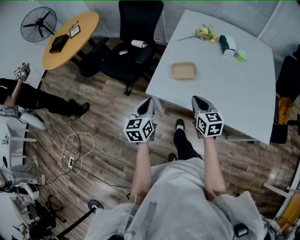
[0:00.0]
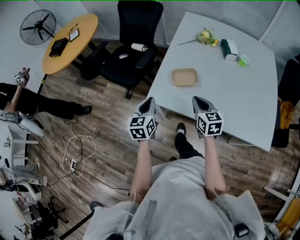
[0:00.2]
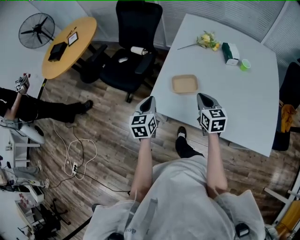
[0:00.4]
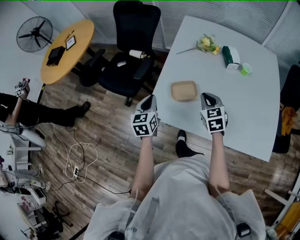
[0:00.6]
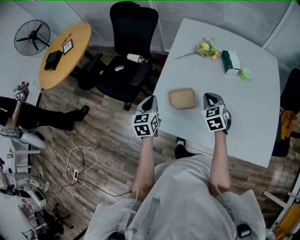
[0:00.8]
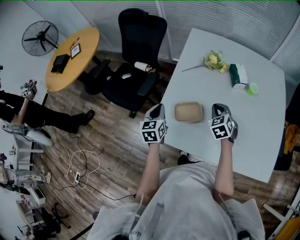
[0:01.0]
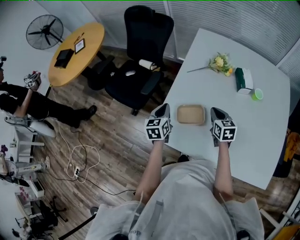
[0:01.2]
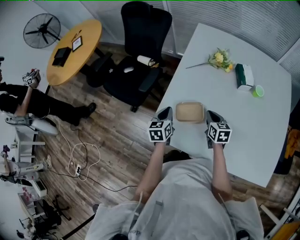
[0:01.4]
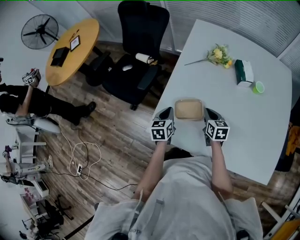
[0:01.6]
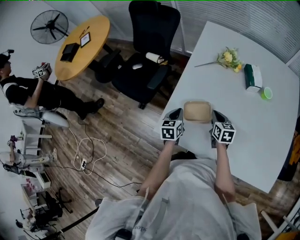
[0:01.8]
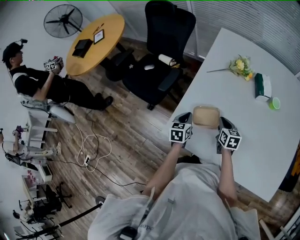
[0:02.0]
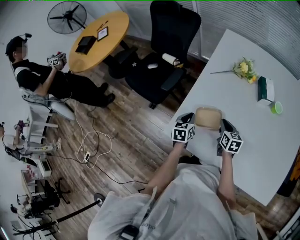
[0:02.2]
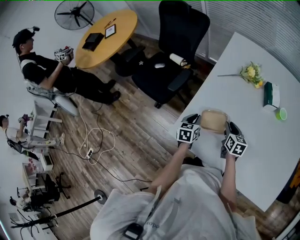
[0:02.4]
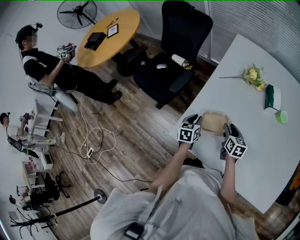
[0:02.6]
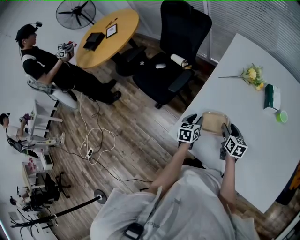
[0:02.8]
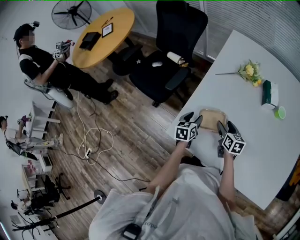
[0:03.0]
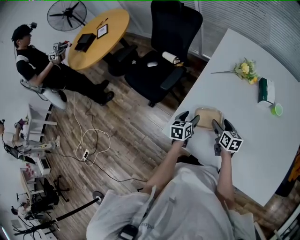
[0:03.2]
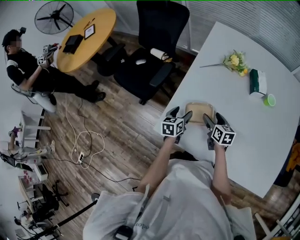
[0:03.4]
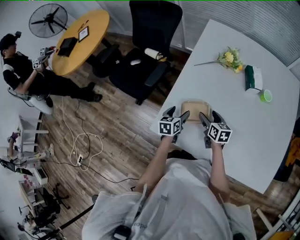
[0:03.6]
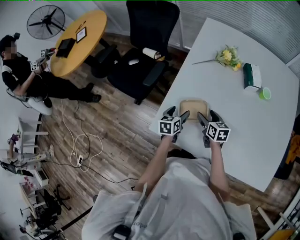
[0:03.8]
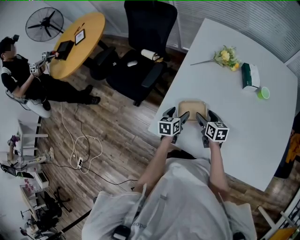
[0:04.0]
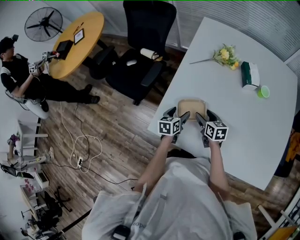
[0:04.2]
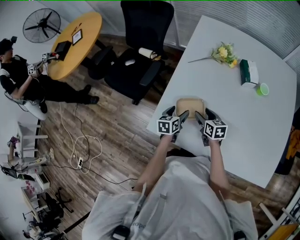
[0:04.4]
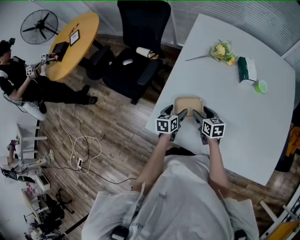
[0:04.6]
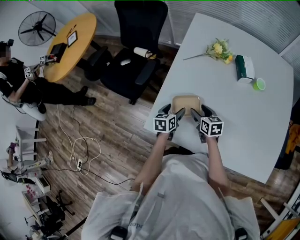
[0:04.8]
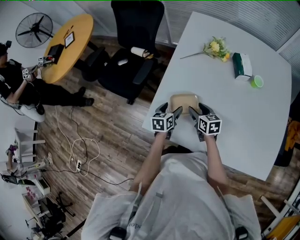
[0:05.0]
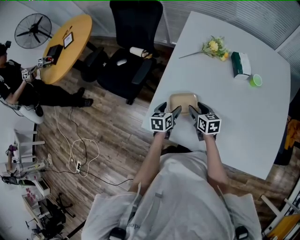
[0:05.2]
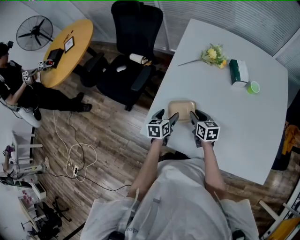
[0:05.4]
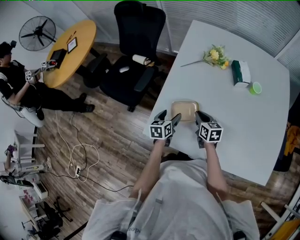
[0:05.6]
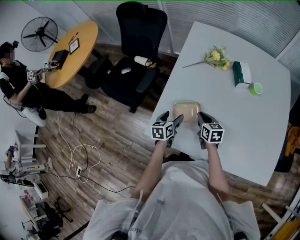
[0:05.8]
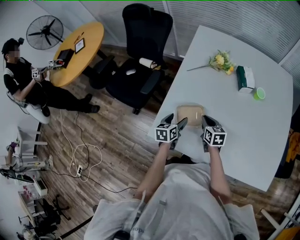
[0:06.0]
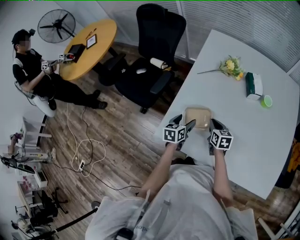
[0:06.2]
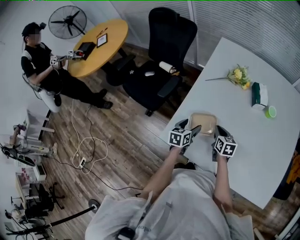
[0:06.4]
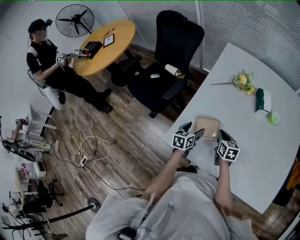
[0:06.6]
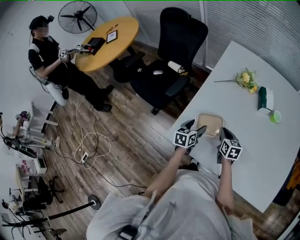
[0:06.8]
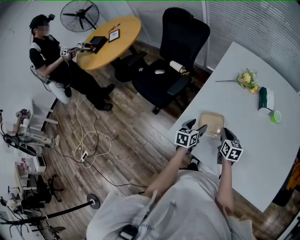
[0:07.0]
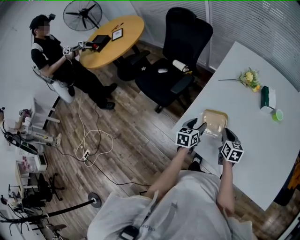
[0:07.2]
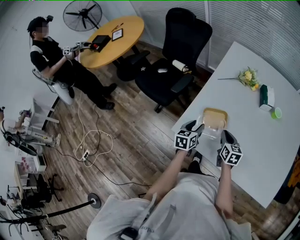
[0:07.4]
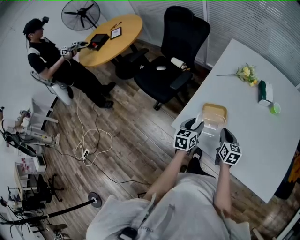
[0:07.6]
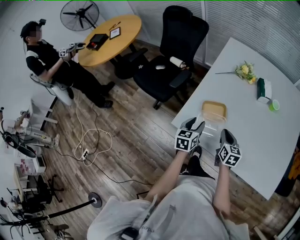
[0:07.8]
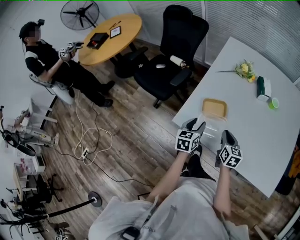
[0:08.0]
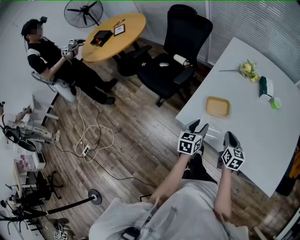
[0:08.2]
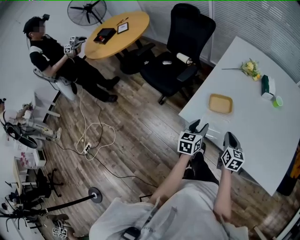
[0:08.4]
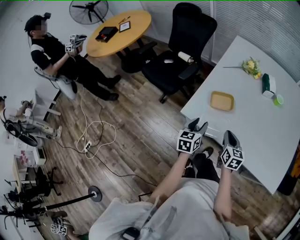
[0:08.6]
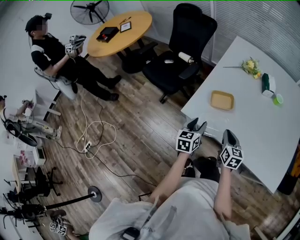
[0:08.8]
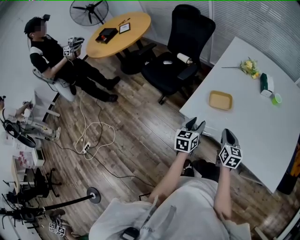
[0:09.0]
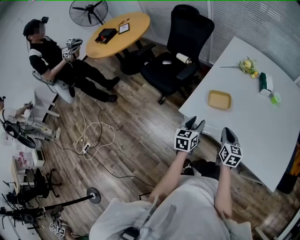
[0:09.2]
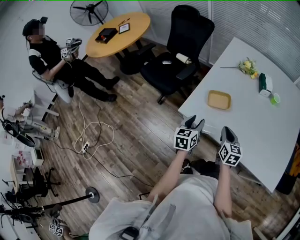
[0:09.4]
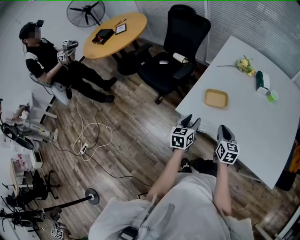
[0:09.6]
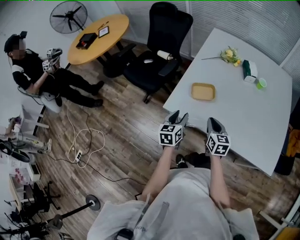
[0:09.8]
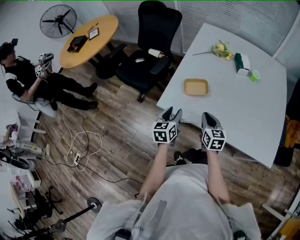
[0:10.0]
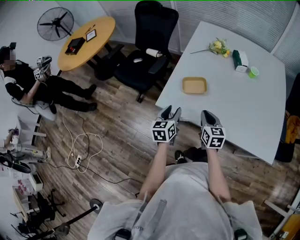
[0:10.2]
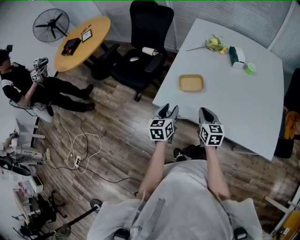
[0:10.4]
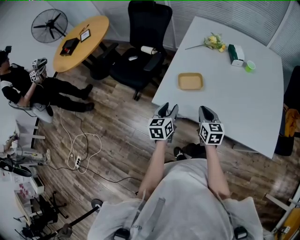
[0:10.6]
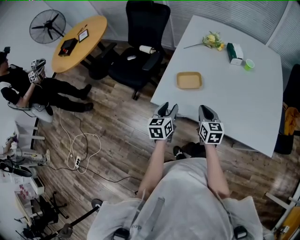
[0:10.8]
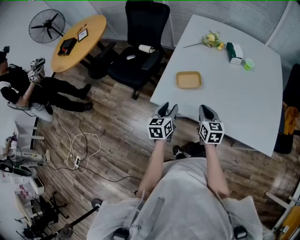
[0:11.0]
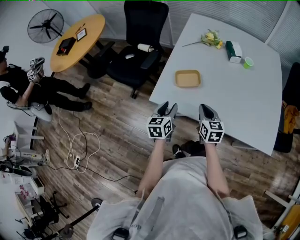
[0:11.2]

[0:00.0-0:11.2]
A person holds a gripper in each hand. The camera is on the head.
0:00.0 to 0:01.6: The right gripper travels forward and downward by about 25 cm. Meanwhile the left gripper heads forward, downward and to the right, covering some 30 cm.
0:01.6 to 0:03.2: The left gripper opens up. Meanwhile the right gripper opens.
0:03.2 to 0:04.8: The grippers make only small movements.
0:04.8 to 0:06.4: The right gripper closes its fingers.
0:06.4 to 0:08.0: Both grippers move backward and upward, roughly 15 cm. The left gripper closes its fingers.
0:08.0 to 0:09.6: Both grippers move backward, roughly 10 cm.
0:09.6 to 0:11.2: The grippers stay close to where they were, moving slightly.

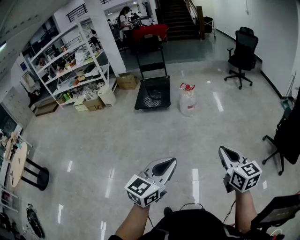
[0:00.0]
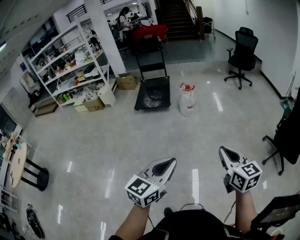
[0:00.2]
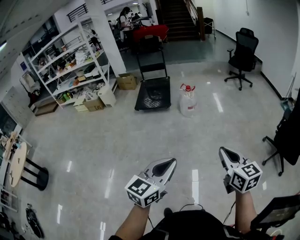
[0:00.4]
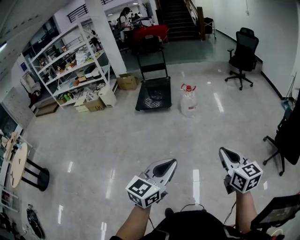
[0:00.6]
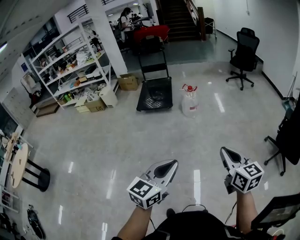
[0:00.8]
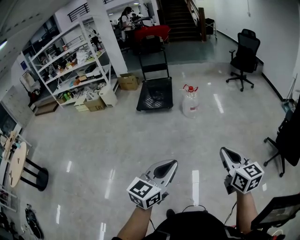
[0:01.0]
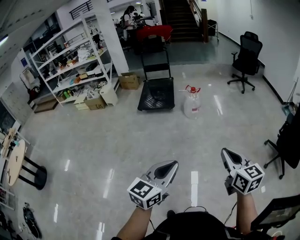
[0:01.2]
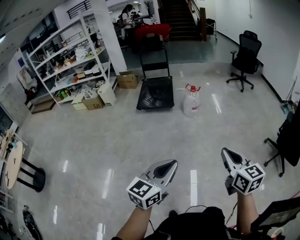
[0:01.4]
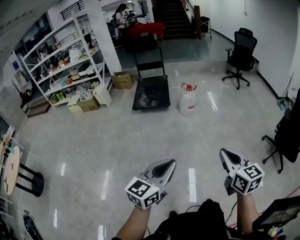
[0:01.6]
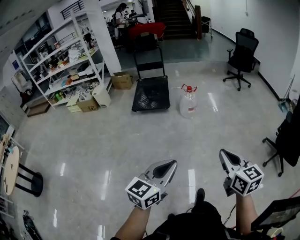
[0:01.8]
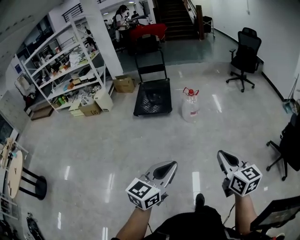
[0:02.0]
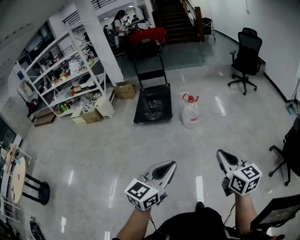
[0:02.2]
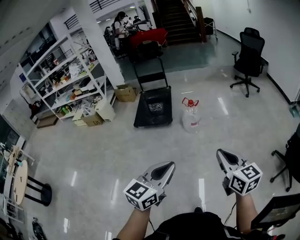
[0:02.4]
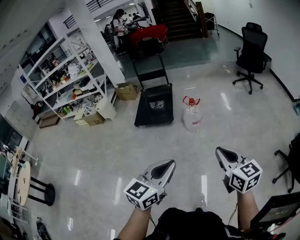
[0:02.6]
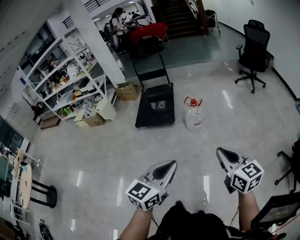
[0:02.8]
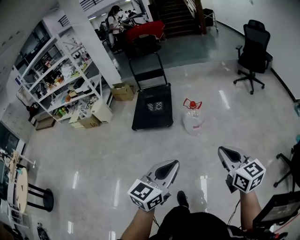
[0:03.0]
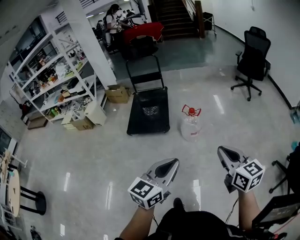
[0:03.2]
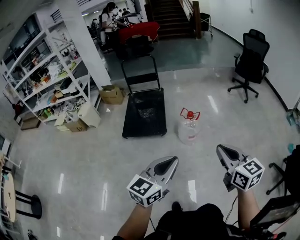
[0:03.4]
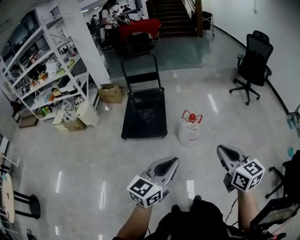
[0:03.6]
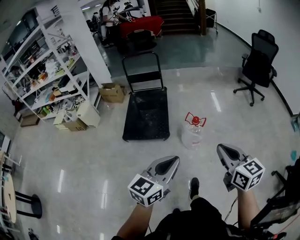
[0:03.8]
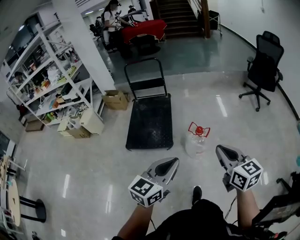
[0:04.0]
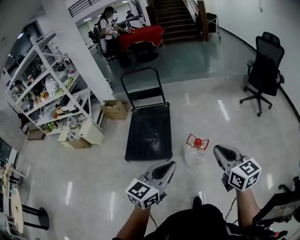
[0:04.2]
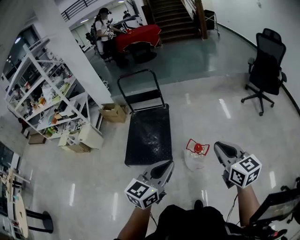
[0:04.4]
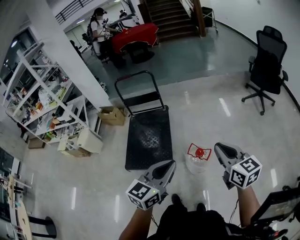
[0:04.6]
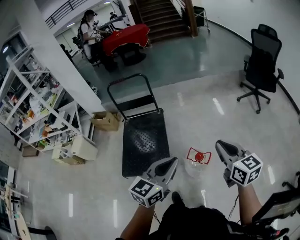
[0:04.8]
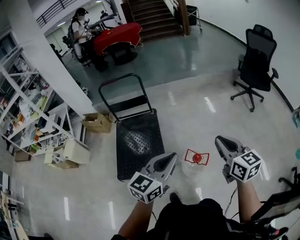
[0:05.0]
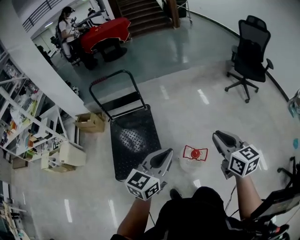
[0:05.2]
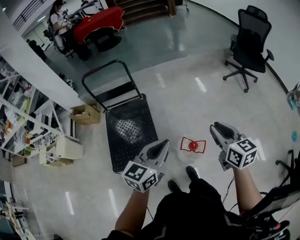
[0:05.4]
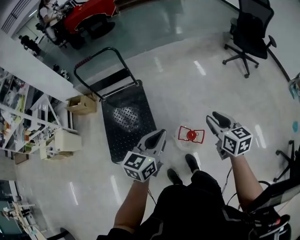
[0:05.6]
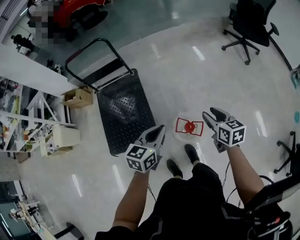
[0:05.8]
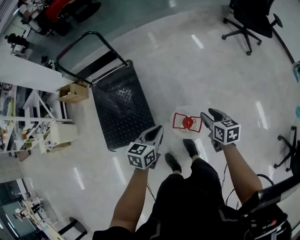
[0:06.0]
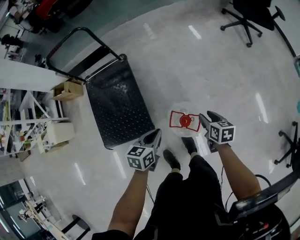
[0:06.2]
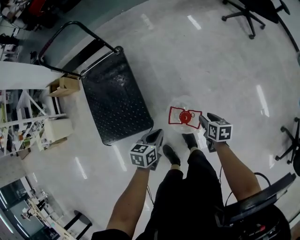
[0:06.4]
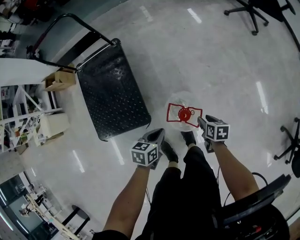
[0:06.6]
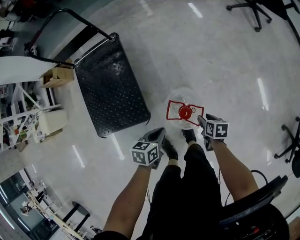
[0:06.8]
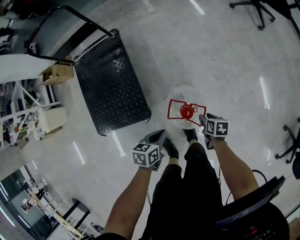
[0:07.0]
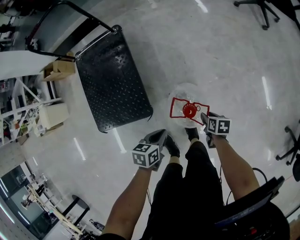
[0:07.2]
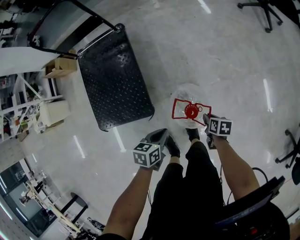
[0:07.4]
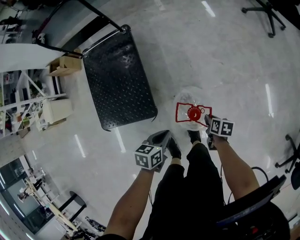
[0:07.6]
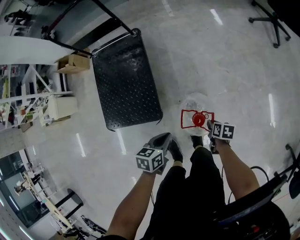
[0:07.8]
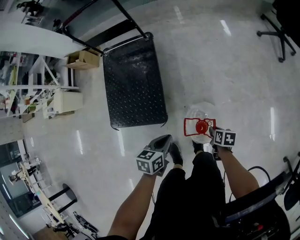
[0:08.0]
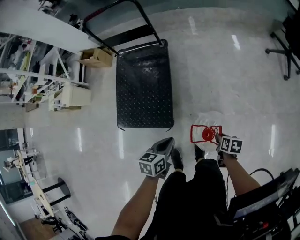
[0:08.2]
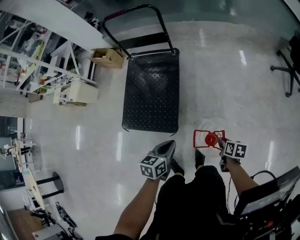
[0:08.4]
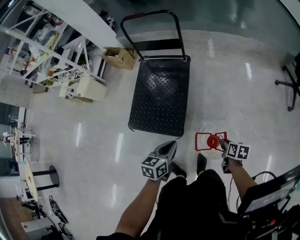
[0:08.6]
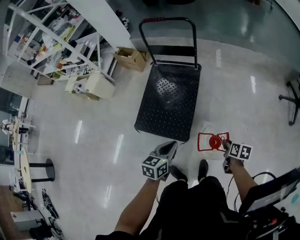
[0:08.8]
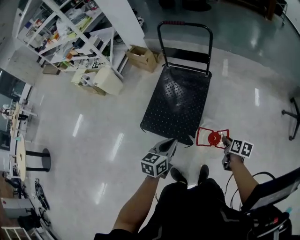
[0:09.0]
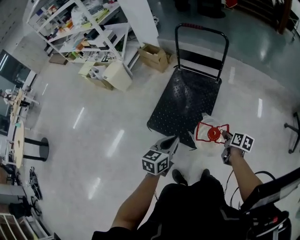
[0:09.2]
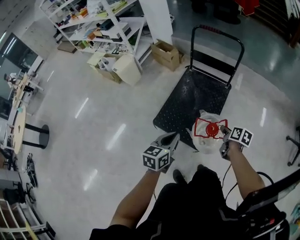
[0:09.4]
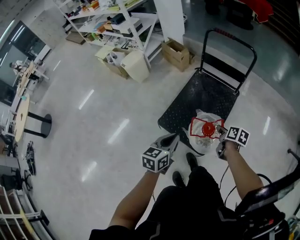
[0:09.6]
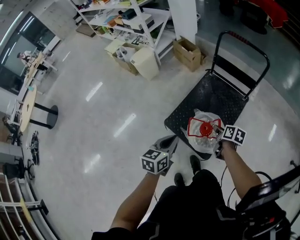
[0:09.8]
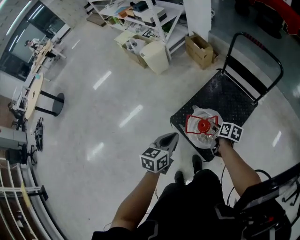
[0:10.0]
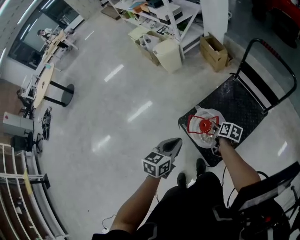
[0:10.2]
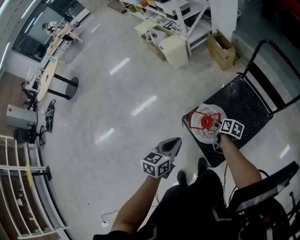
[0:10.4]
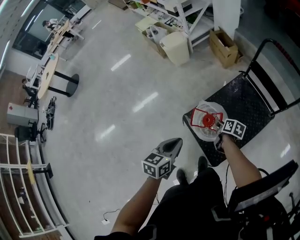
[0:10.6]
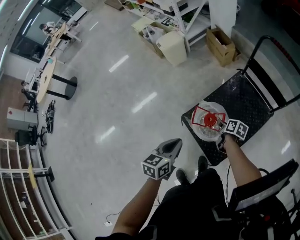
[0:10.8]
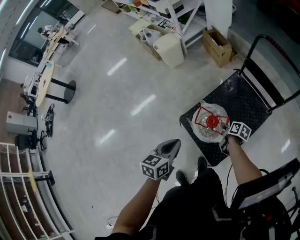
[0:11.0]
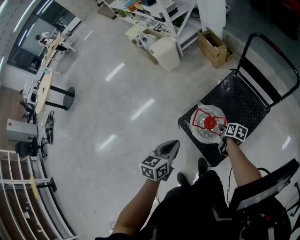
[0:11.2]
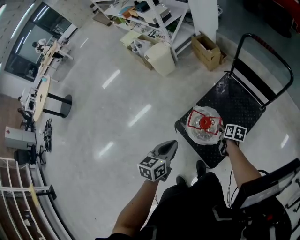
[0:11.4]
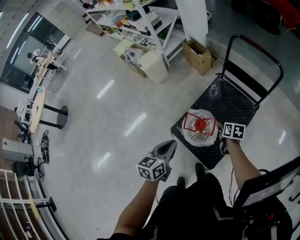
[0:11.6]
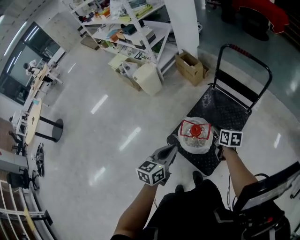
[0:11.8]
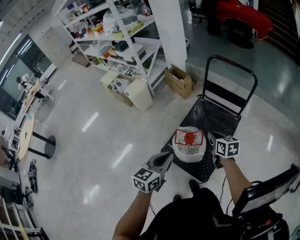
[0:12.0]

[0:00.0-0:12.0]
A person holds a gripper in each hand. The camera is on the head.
0:00.0 to 0:01.6: The two grippers go approximately 10 cm to the left.
0:01.6 to 0:03.0: The pair of grippers is taken forward, about 40 cm.
0:03.0 to 0:04.4: The two grippers travel together, forward, about 50 cm.
0:04.4 to 0:06.0: The right gripper shifts approximately 40 cm downward and forward, swivels about 40 degrees, and opens, while the left gripper heads forward and downward, covering roughly 40 cm, and turns by roughly 30 degrees.
0:06.0 to 0:07.6: Both grippers move downward, roughly 25 cm. The right gripper swivels approximately 30 degrees, and closes. Meanwhile the left gripper swivels roughly 20 degrees.
0:07.6 to 0:09.0: The left gripper moves about 40 cm, and changes its angle by about 40 degrees. The right gripper shifts approximately 30 cm upward, and turns by approximately 30 degrees.
0:09.0 to 0:10.4: The left gripper ends up about 30 cm from where it was, and turns by roughly 30 degrees. Meanwhile the right gripper ends up some 50 cm from where it was, and swivels roughly 40 degrees.
0:10.4 to 0:12.0: The right gripper shifts roughly 20 cm upward and to the right, and turns by about 30 degrees. Meanwhile the left gripper travels upward and to the right by approximately 10 cm, and turns by about 30 degrees.
